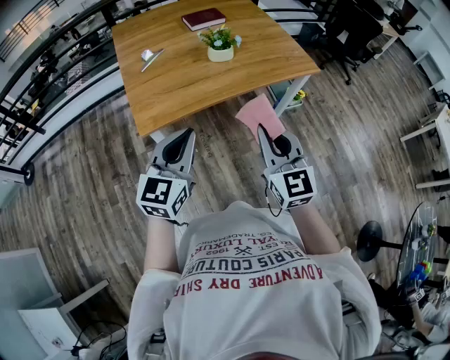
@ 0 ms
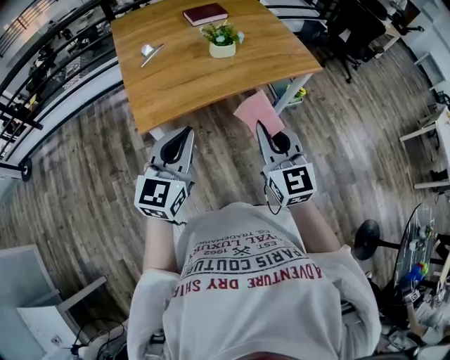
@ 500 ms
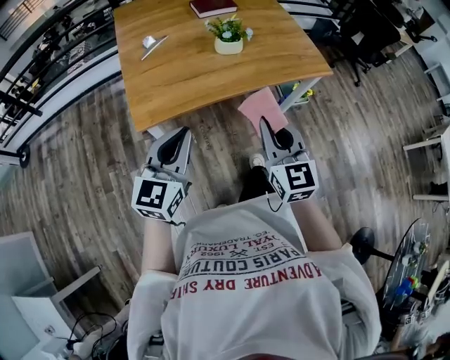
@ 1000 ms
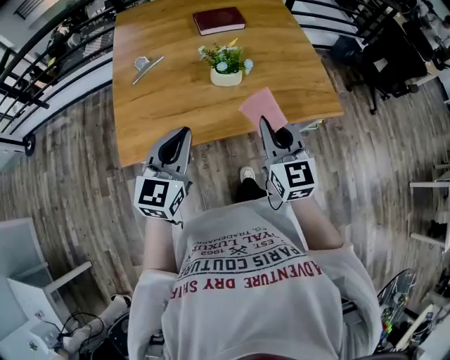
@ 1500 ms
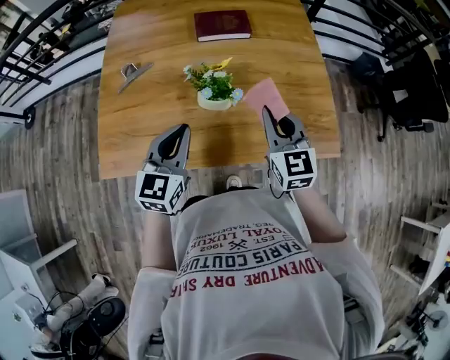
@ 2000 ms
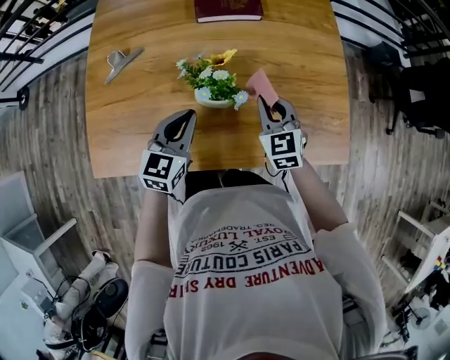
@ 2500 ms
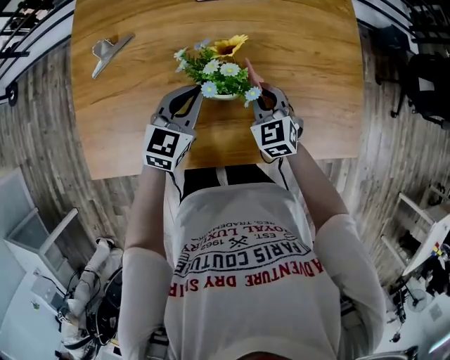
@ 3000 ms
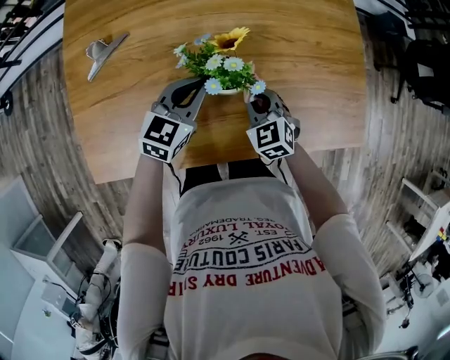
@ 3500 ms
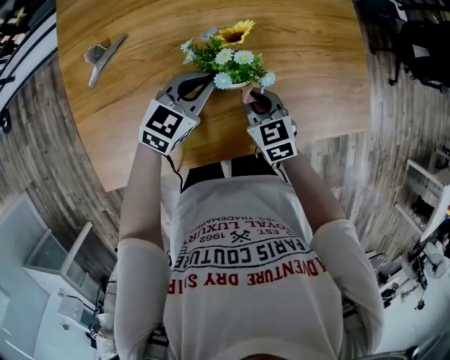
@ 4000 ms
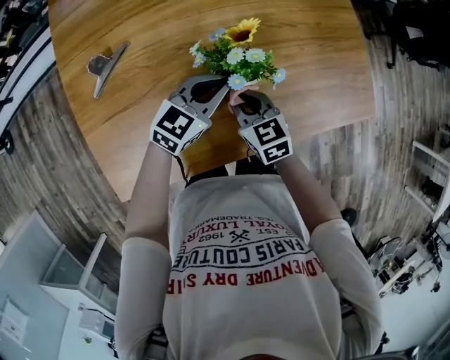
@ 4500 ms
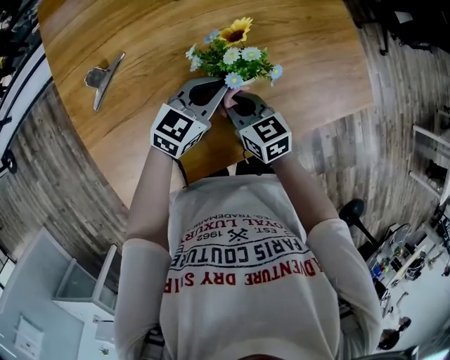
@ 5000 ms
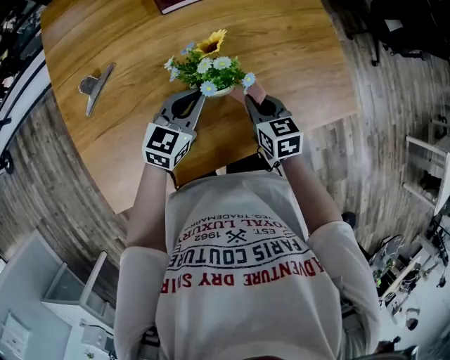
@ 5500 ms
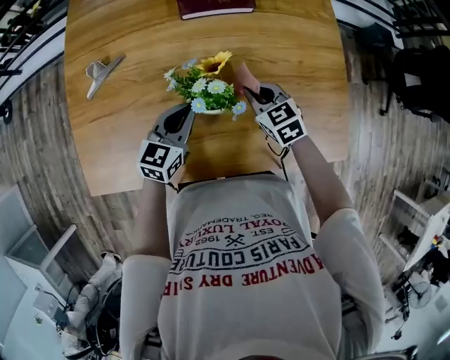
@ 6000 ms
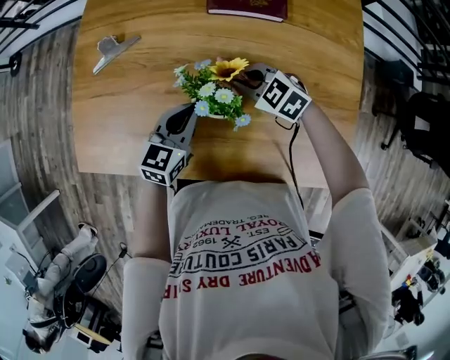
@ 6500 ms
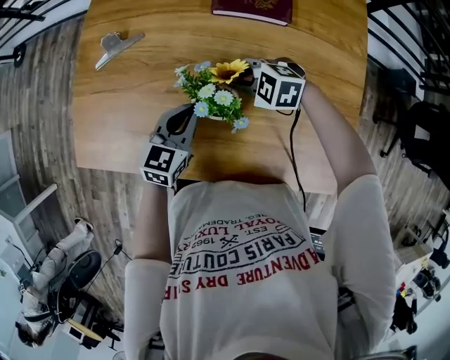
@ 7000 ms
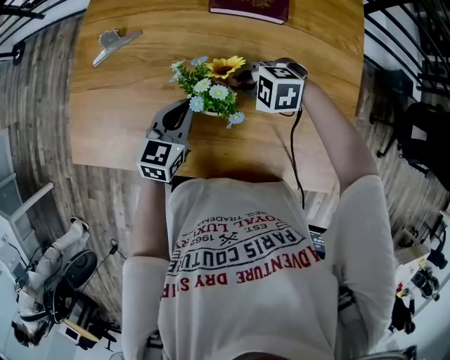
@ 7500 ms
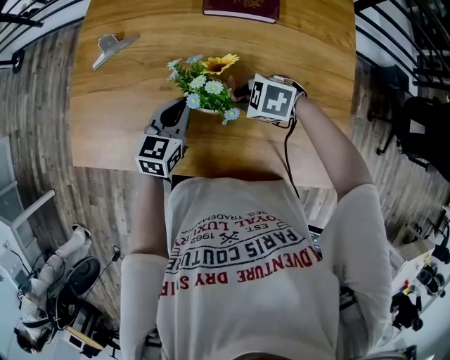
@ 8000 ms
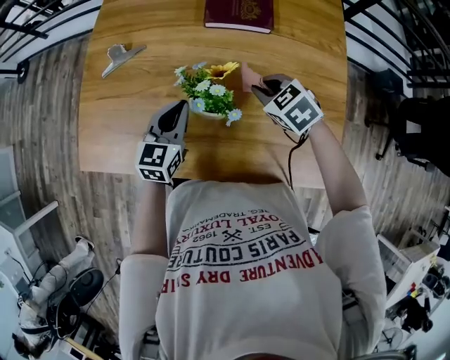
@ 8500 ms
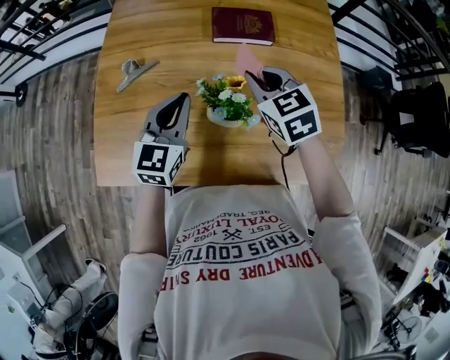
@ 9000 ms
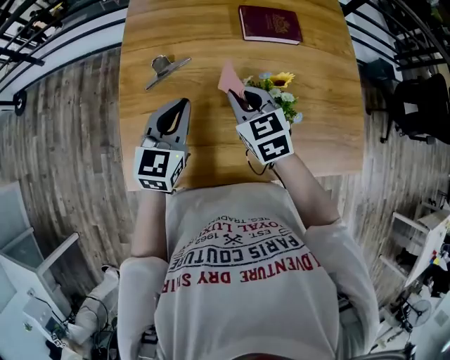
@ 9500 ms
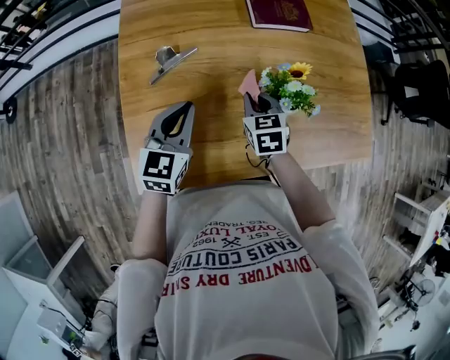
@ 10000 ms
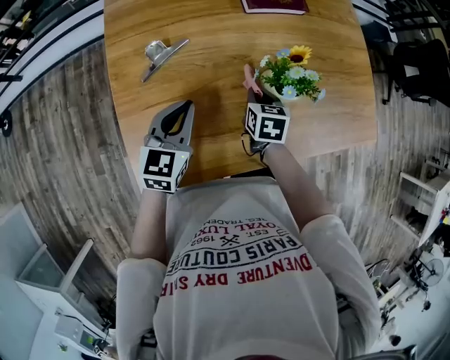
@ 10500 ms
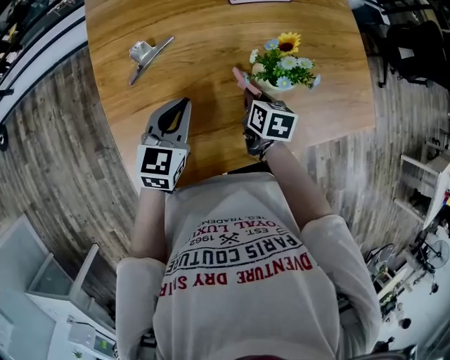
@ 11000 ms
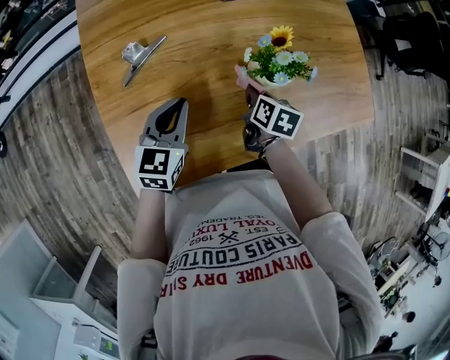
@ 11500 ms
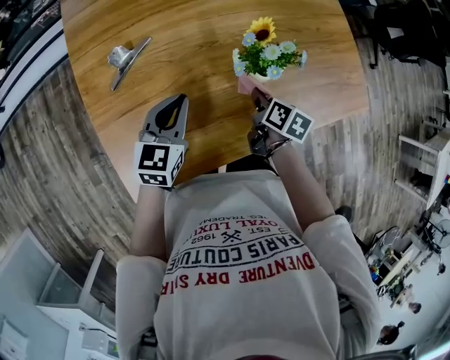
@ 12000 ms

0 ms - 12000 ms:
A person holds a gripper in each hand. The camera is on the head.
0 ms - 2000 ms: Both grippers move forward, approximately 40 cm. The left gripper swivels roughly 20 degrees.
2000 ms - 4000 ms: The right gripper is displaced downward and to the left by approximately 25 cm, and turns by roughly 30 degrees. The left gripper travels downward and forward by approximately 20 cm, and rotates approximately 30 degrees.
4000 ms - 6000 ms: The left gripper rotates about 20 degrees. The right gripper moves forward and to the right, approximately 10 cm.
6000 ms - 8000 ms: The right gripper changes its angle by about 60 degrees.
8000 ms - 10000 ms: The right gripper reaches some 20 cm upward, then returns, and rotates roughly 80 degrees. Meanwhile the left gripper moves approximately 25 cm.
10000 ms - 12000 ms: The left gripper travels to the right by roughly 5 cm. Meanwhile the right gripper shifts approximately 15 cm to the right, and rotates around the line of its fingers by roughly 60 degrees, clockwise from behind.

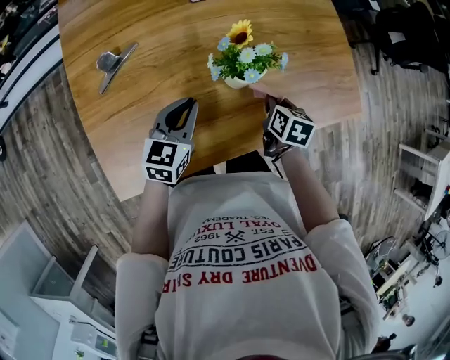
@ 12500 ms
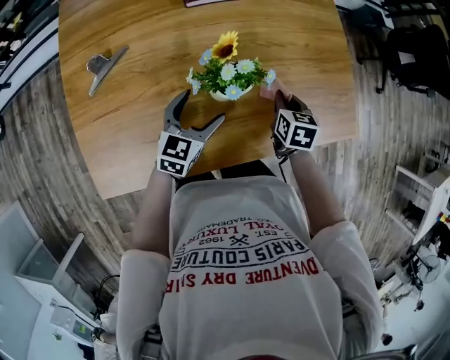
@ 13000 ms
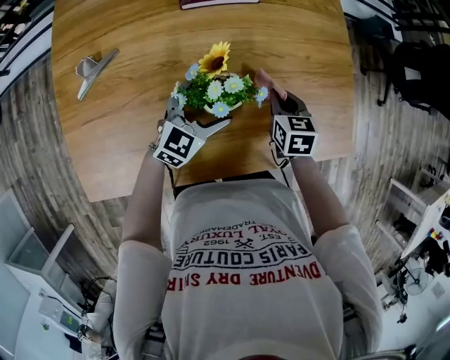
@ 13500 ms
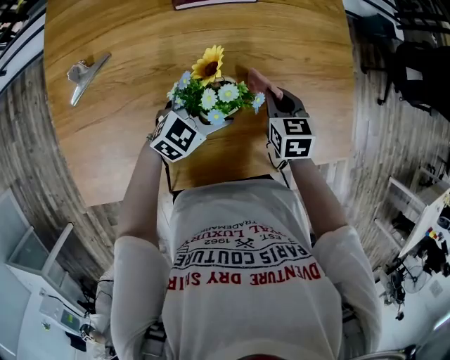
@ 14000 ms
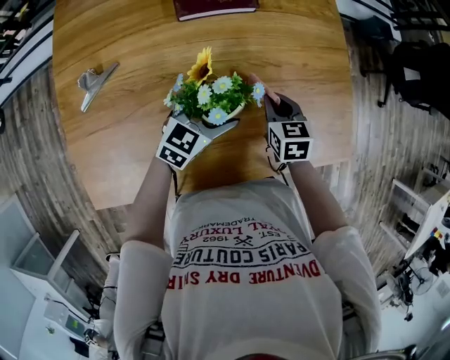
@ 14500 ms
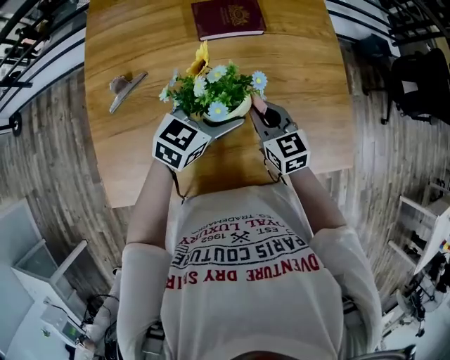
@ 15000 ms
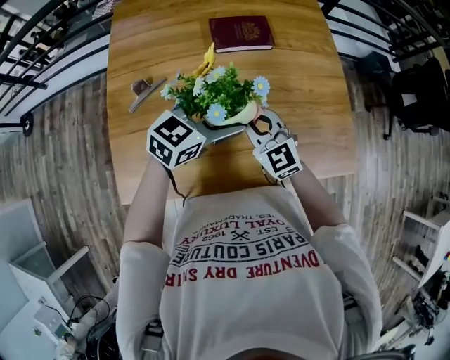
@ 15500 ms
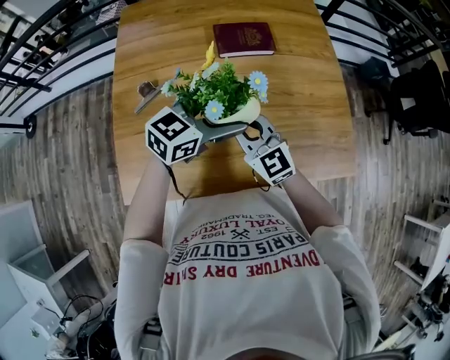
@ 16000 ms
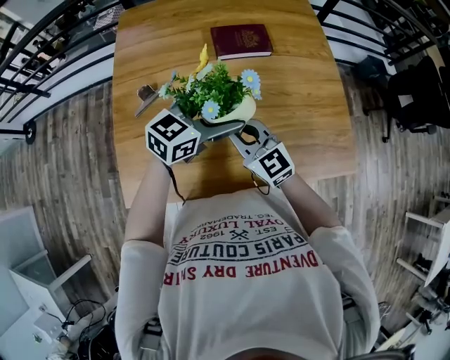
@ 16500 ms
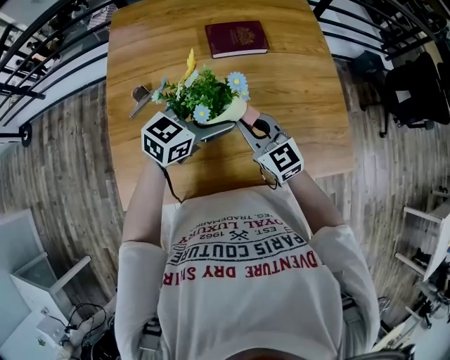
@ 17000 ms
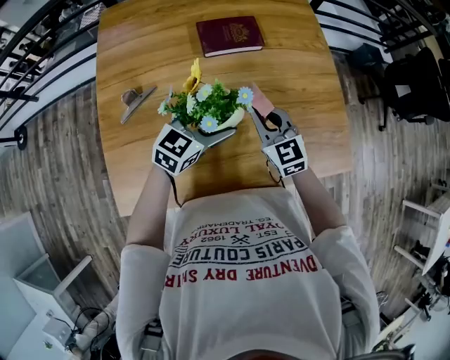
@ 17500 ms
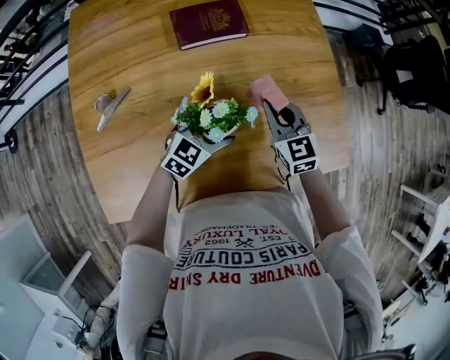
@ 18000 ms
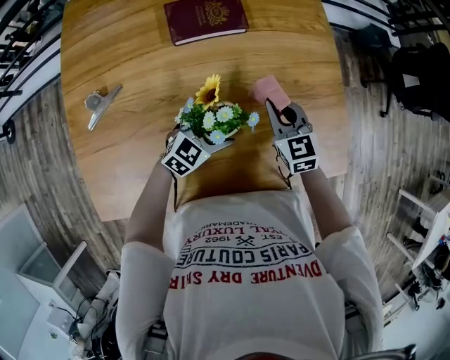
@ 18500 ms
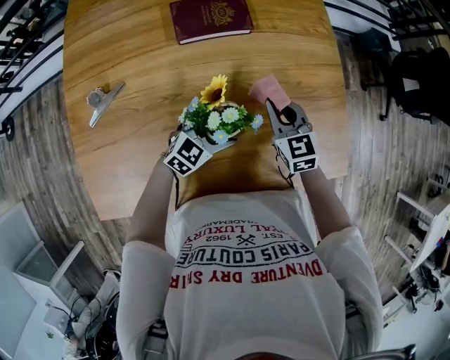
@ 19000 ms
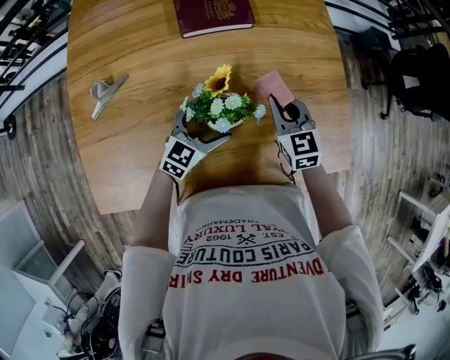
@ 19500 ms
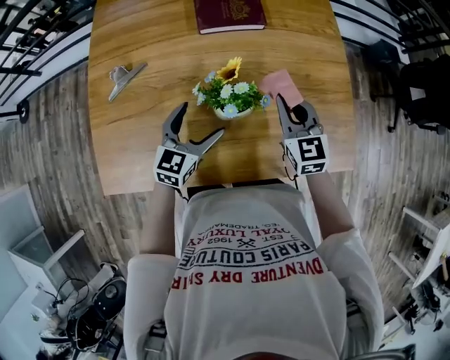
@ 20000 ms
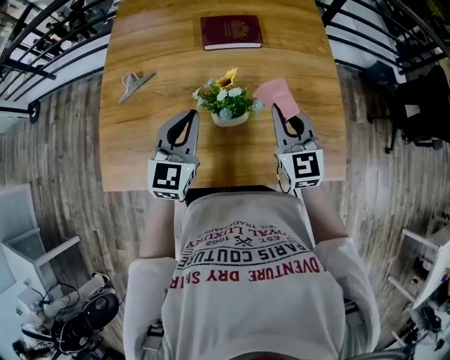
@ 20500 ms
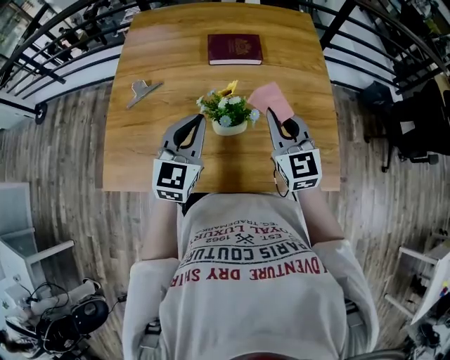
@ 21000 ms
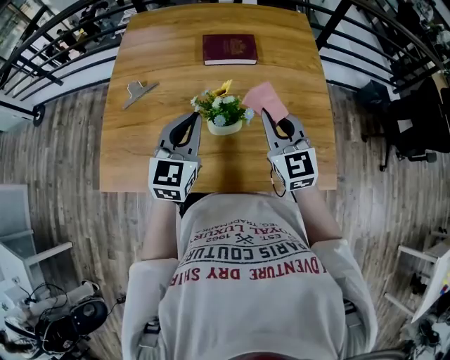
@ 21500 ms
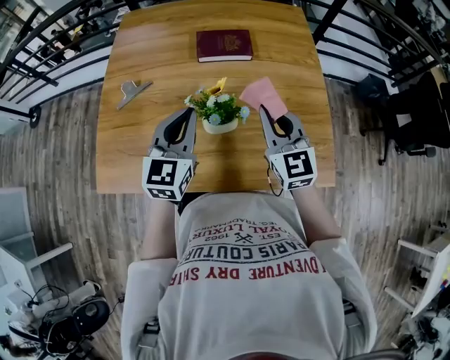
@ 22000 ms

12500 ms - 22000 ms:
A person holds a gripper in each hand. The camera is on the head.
12500 ms - 14500 ms: The left gripper shifts some 20 cm forward and to the right, and opens up; the right gripper moves forward, roughly 10 cm, and changes its angle by some 30 degrees.
14500 ms - 16500 ms: The left gripper heads upward, covering approximately 20 cm. Meanwhile the right gripper shifts about 30 cm to the left, upward and backward, and points its fingers about 30 degrees further upward.
16500 ms - 18000 ms: The right gripper shifts approximately 25 cm to the right, forward and downward, and changes its angle by approximately 30 degrees; the left gripper heads downward, covering some 20 cm.
18000 ms - 20000 ms: The left gripper is displaced backward and to the left by roughly 10 cm, and changes its angle by roughly 30 degrees.
20000 ms - 22000 ms: The two grippers go roughly 15 cm upward. The left gripper rotates approximately 20 degrees, and closes its fingers.

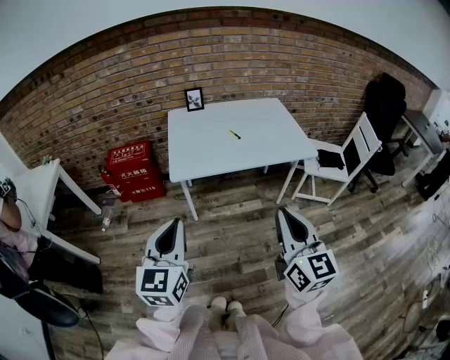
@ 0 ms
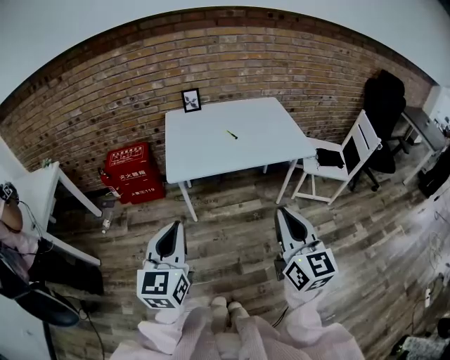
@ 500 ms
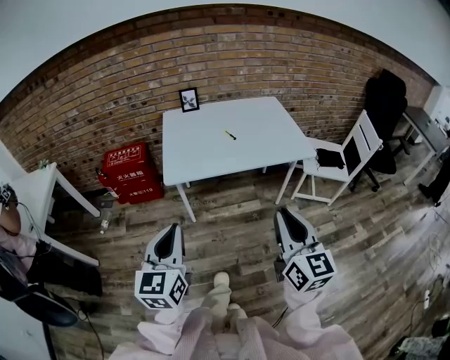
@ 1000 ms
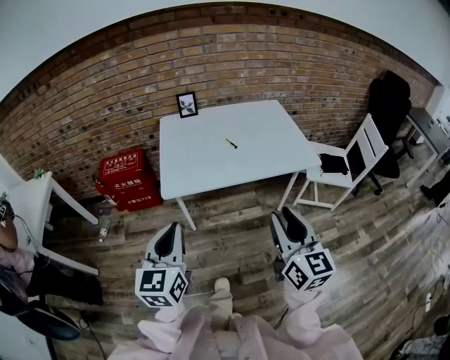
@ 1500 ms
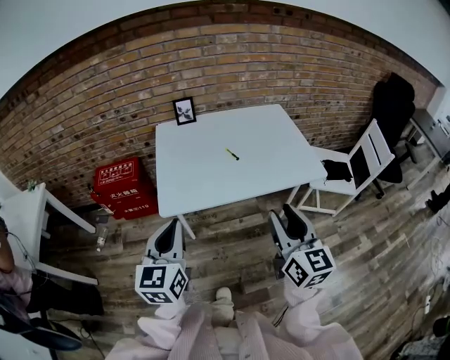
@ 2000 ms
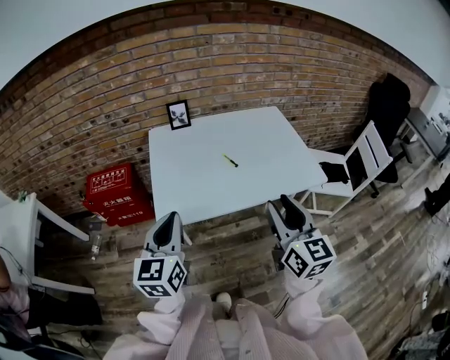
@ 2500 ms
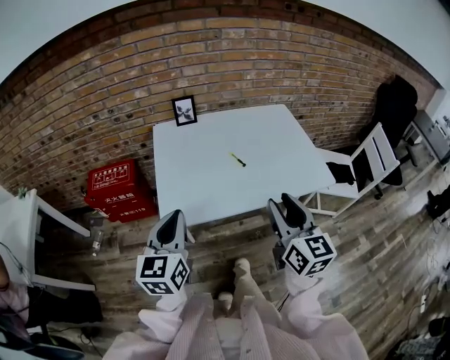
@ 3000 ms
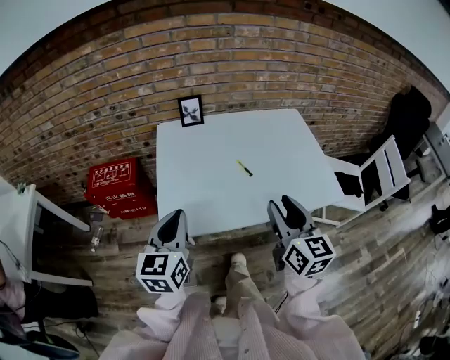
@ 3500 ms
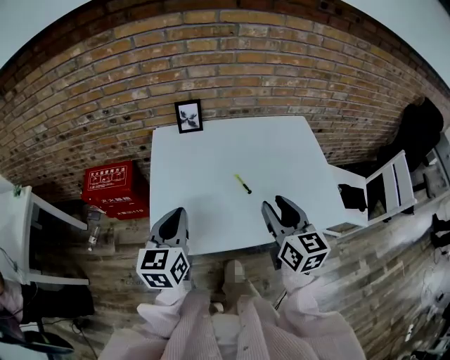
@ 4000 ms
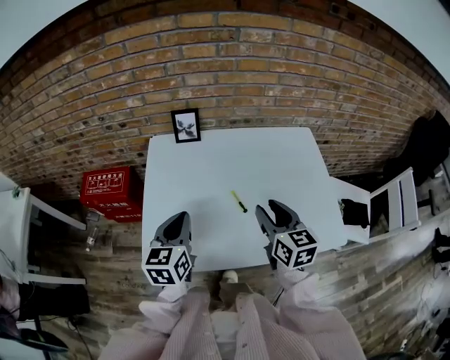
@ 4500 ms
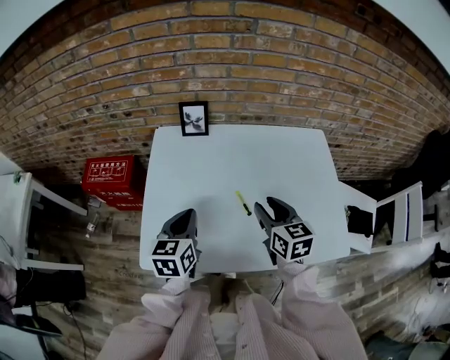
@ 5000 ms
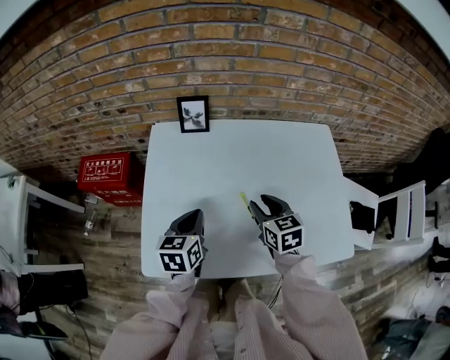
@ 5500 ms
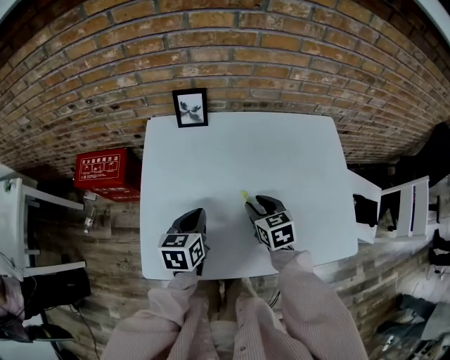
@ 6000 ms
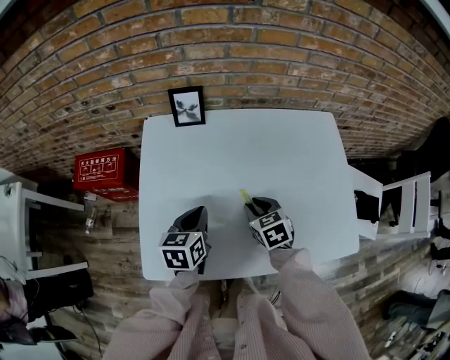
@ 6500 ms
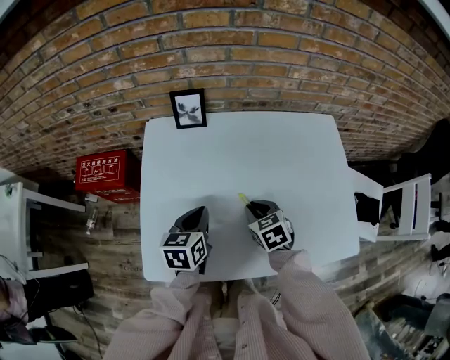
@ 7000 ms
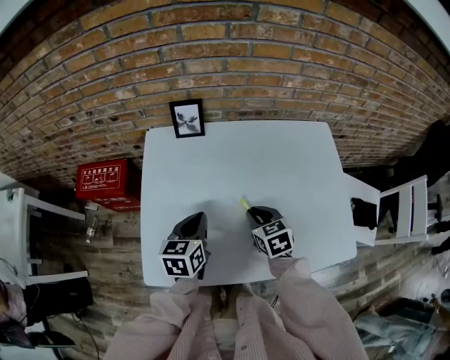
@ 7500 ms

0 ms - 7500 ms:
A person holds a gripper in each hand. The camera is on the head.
0 ms - 2000 ms: Both grippers move forward, approximately 20 cm. The right gripper opens.
2000 ms - 4000 ms: The grippers both shift forward by roughly 25 cm.
4000 ms - 5500 ms: The left gripper travels downward, forward and to the right by roughly 20 cm, and changes its angle by some 20 degrees. Meanwhile the right gripper moves forward and downward, about 20 cm, and changes its angle by approximately 30 degrees.
5500 ms - 7500 ms: The right gripper shifts some 5 cm downward, and closes up.
